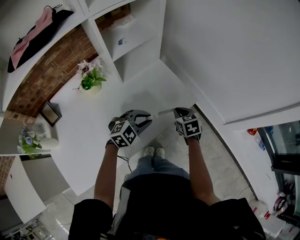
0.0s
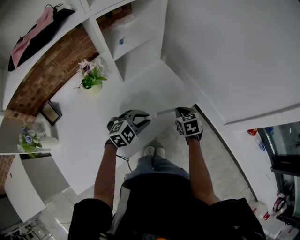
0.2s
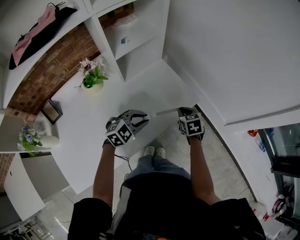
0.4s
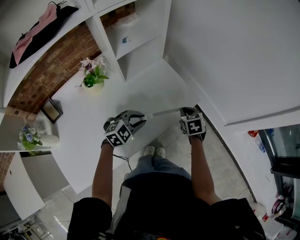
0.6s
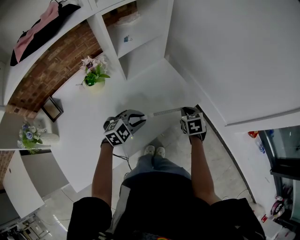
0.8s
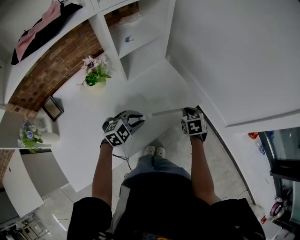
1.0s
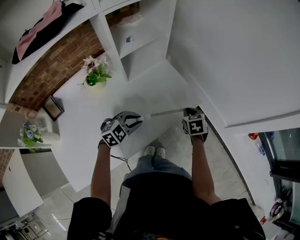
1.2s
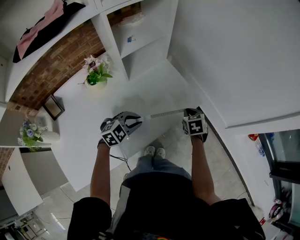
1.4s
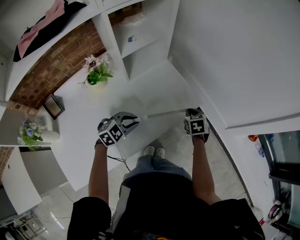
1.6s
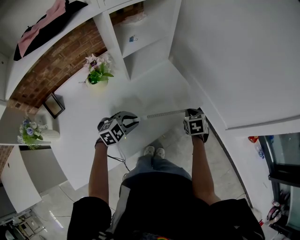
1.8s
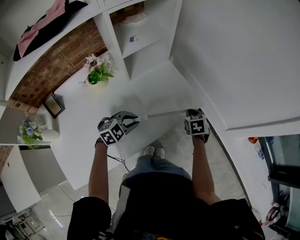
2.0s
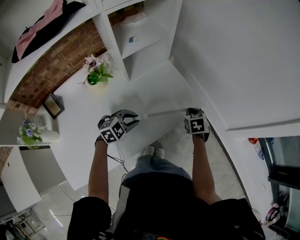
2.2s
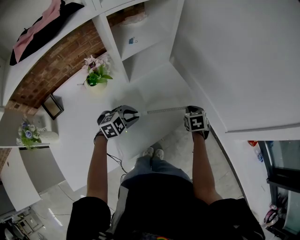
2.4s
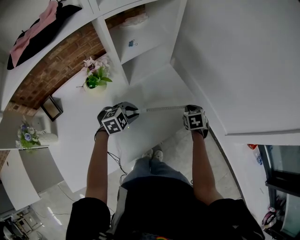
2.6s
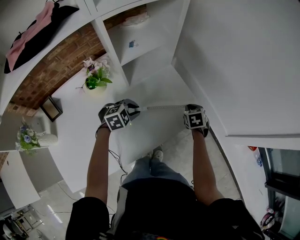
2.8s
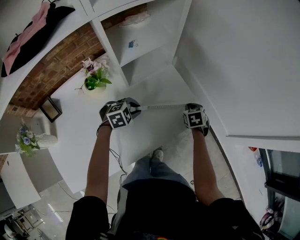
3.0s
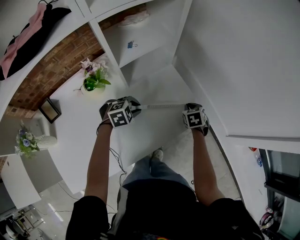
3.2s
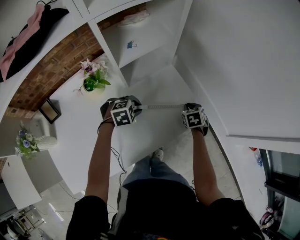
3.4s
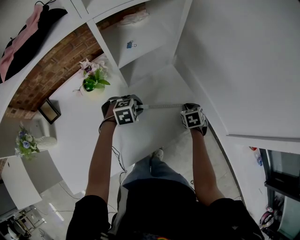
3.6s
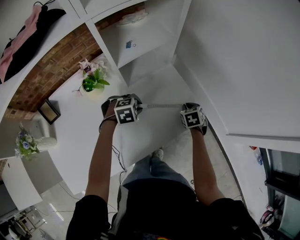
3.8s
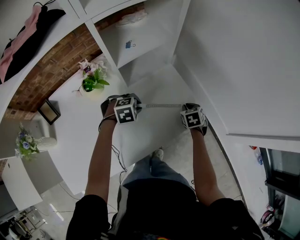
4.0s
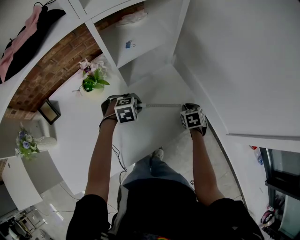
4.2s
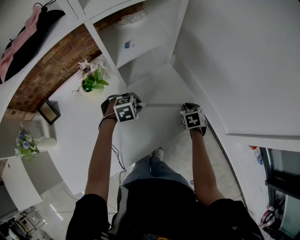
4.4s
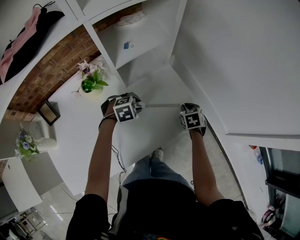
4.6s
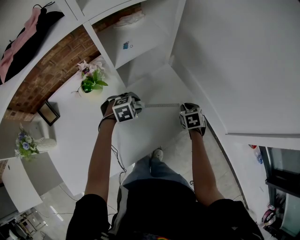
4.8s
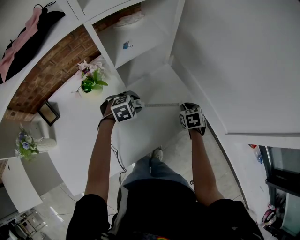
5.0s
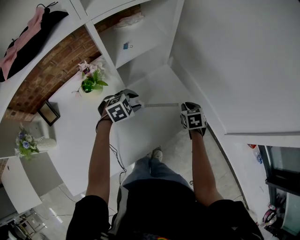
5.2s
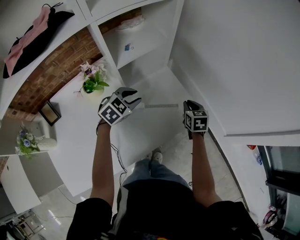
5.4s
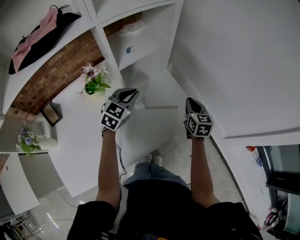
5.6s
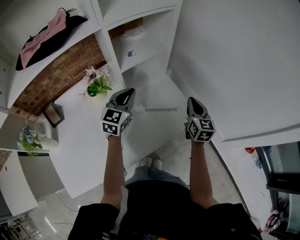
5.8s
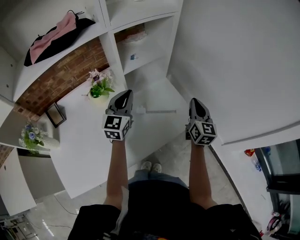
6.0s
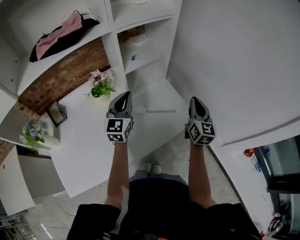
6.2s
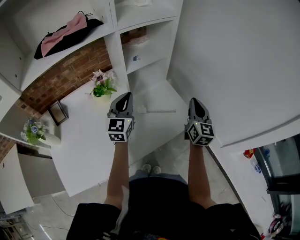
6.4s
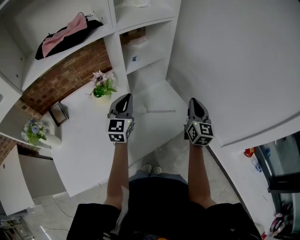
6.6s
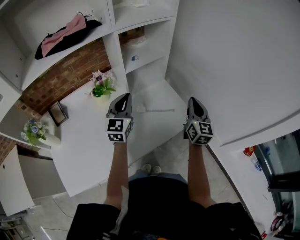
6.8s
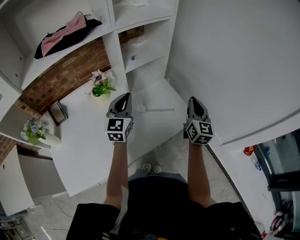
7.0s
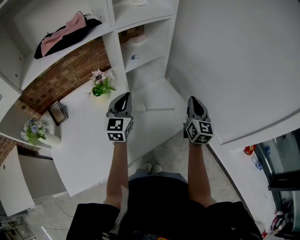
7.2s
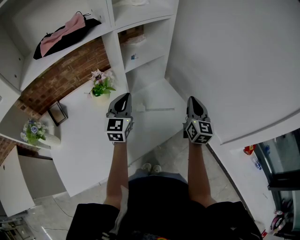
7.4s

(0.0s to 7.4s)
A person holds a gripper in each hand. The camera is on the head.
0.0s - 1.4s: The left gripper travels to the left by about 5 cm.
1.4s - 3.0s: The left gripper shifts about 10 cm forward and to the left; the right gripper shifts some 10 cm forward.
3.0s - 4.4s: There are only small adjustments of the grippers.
4.4s - 6.0s: Both grippers move upward, about 25 cm. The right gripper points its fingers about 50 degrees further upward; the left gripper angles its fingers upward, by approximately 60 degrees.
6.0s - 7.4s: The grippers make only small movements.

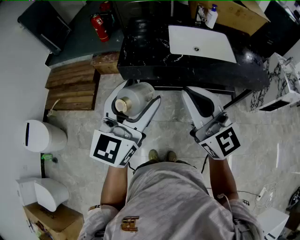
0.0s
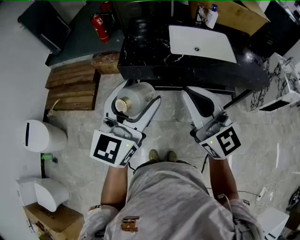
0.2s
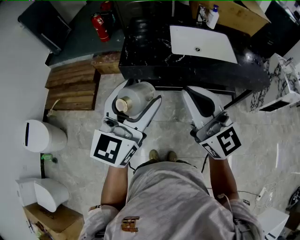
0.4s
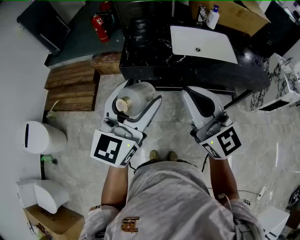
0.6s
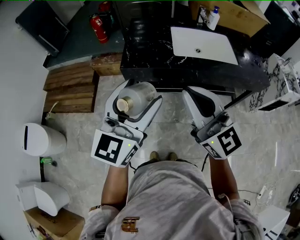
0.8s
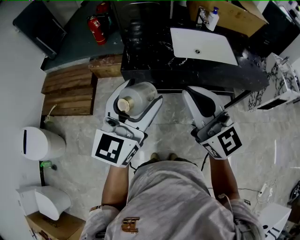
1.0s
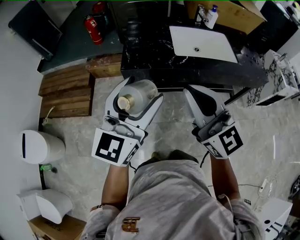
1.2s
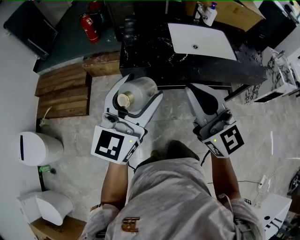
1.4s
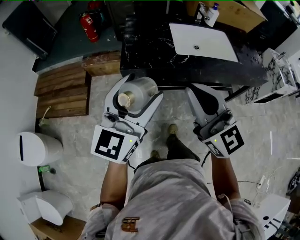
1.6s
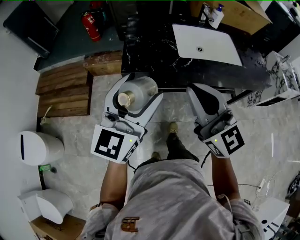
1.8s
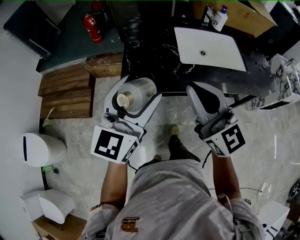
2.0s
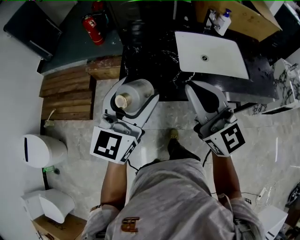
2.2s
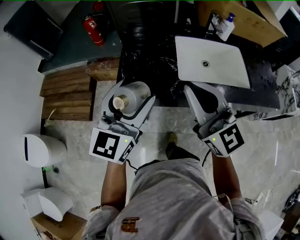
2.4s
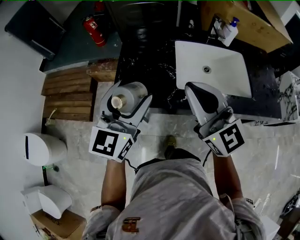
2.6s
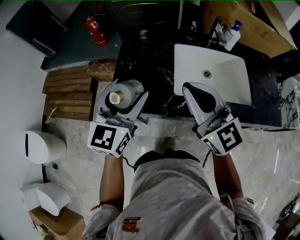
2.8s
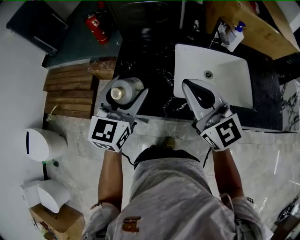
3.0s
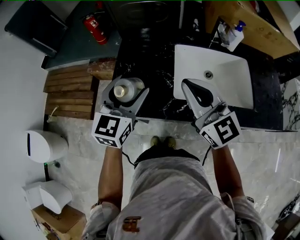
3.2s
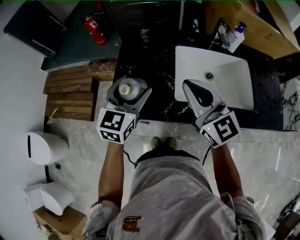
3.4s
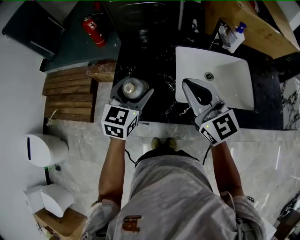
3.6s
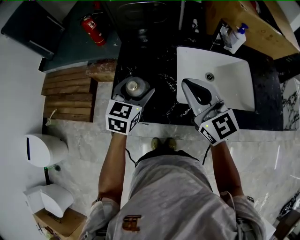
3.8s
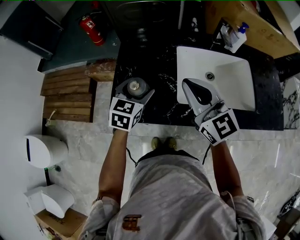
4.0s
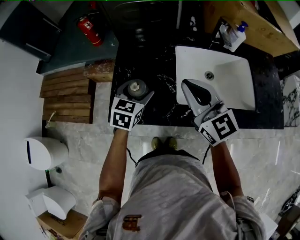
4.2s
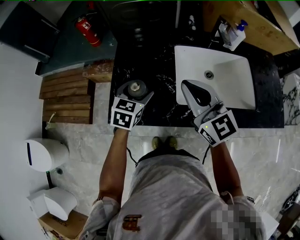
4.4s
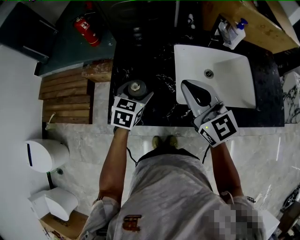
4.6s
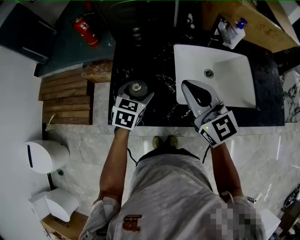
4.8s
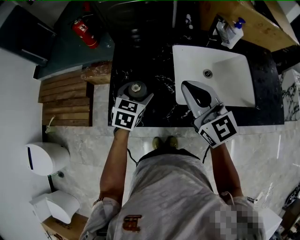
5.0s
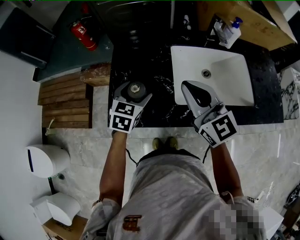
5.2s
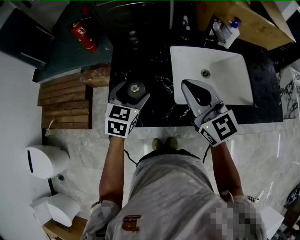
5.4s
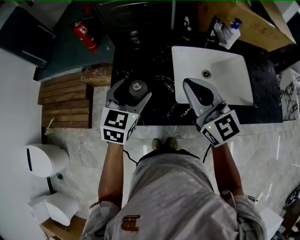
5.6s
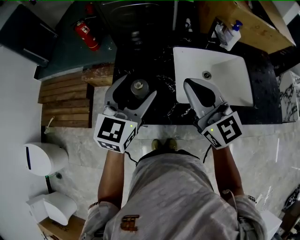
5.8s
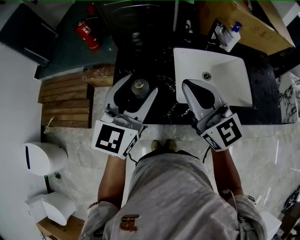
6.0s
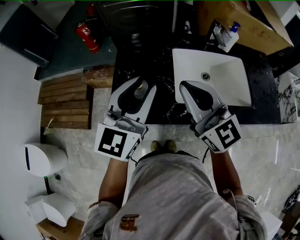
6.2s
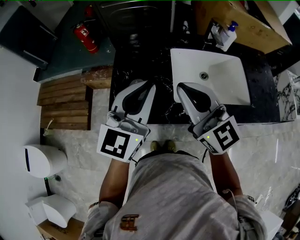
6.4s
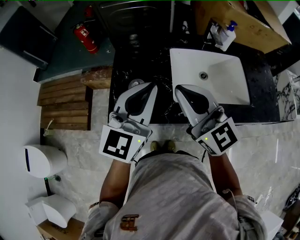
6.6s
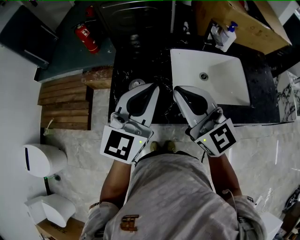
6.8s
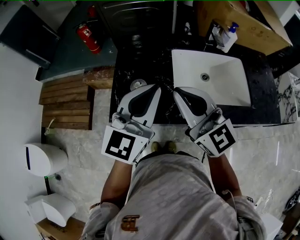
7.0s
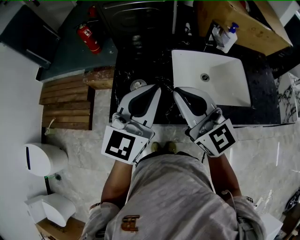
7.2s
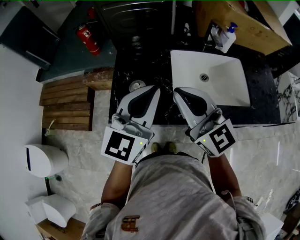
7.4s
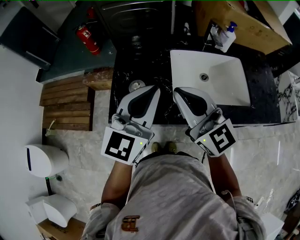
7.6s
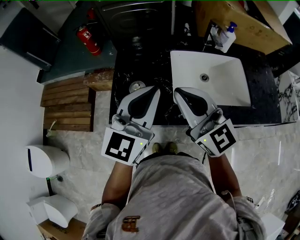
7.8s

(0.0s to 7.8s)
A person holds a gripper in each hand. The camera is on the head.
0.0s - 1.6s: The right gripper is displaced to the left by approximately 5 cm. Meanwhile the left gripper moves to the left and forward, approximately 10 cm.
1.6s - 3.2s: Both grippers move forward, roughly 30 cm. The left gripper changes its angle by roughly 20 degrees.
3.2s - 4.6s: The right gripper shifts by approximately 5 cm. Meanwhile the left gripper moves downward and forward, some 15 cm, and turns by some 30 degrees.
4.6s - 6.2s: The left gripper shifts about 25 cm upward, angles its fingers upward, by roughly 40 degrees, and closes. The right gripper moves upward, about 5 cm.
6.2s - 7.8s: The left gripper closes its fingers.

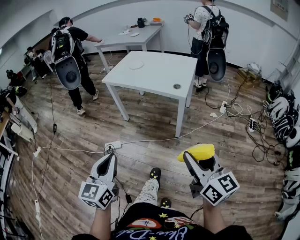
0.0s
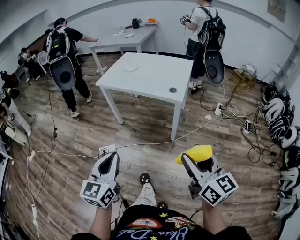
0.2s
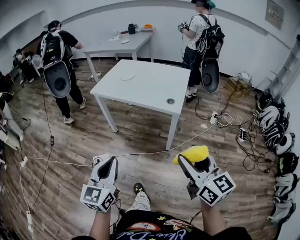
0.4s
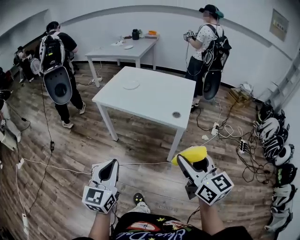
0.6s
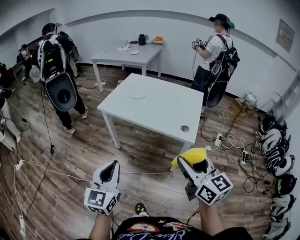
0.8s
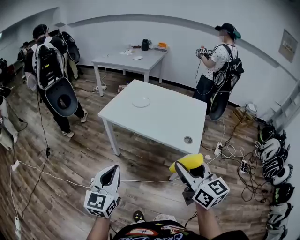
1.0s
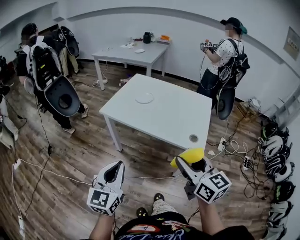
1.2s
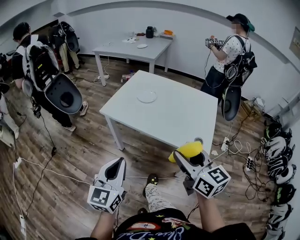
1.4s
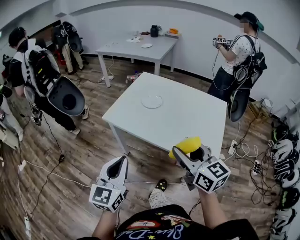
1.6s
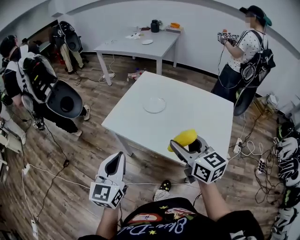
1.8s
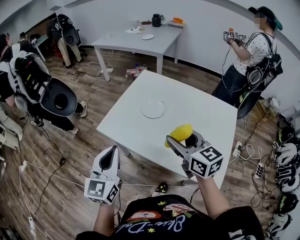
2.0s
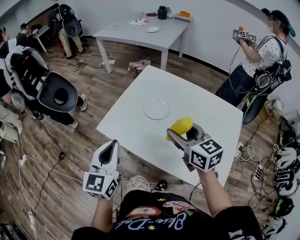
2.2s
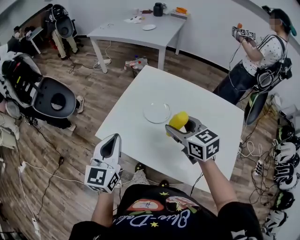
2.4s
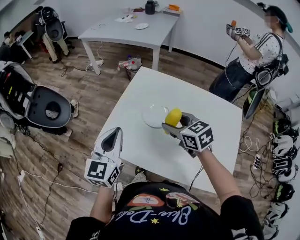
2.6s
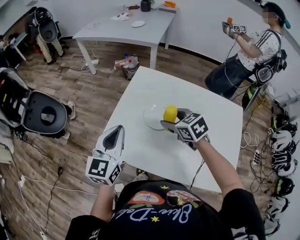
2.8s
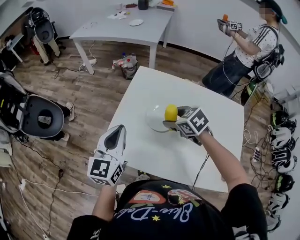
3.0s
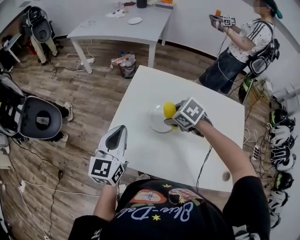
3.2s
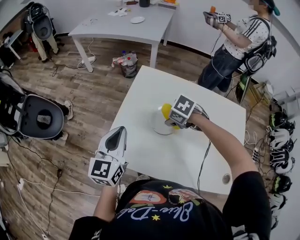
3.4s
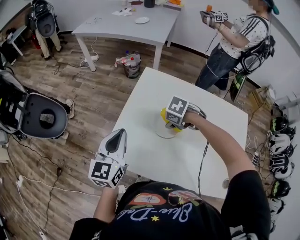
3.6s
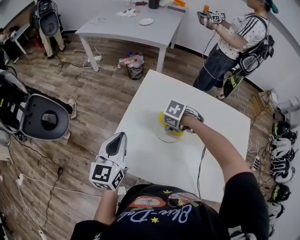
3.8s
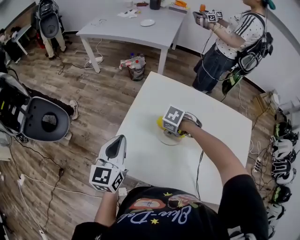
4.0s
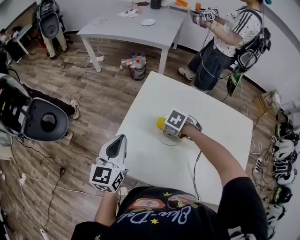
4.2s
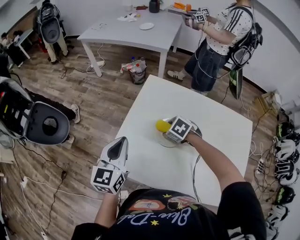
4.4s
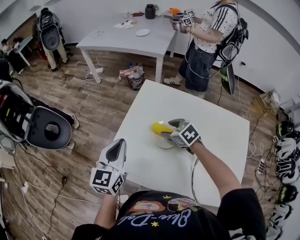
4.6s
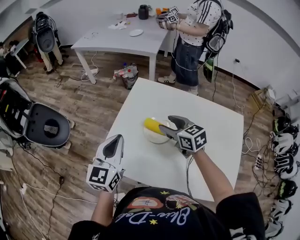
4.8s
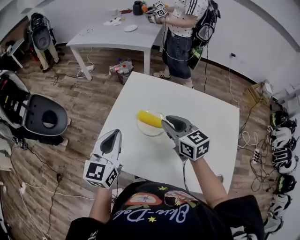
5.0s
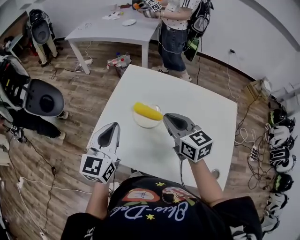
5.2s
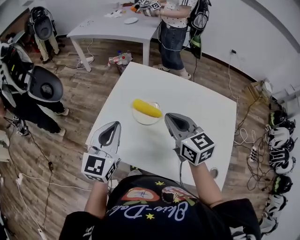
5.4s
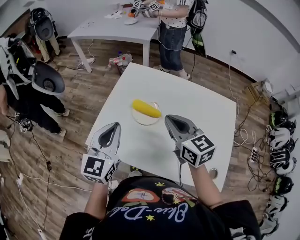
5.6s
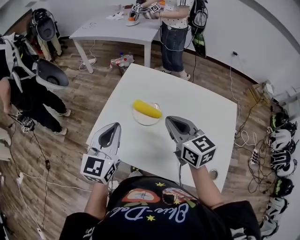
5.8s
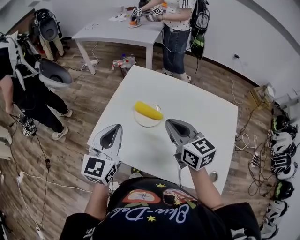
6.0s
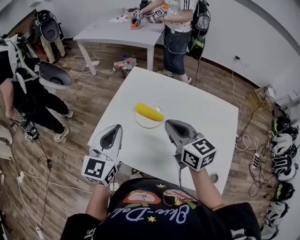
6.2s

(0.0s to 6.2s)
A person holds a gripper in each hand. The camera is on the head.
0.0s - 1.6s: The pair of grippers is taken forward, some 50 cm.
1.6s - 3.2s: The pair of grippers is taken forward, about 40 cm. The right gripper tips its fingers downward by some 60 degrees.
4.6s - 6.2s: The right gripper is displaced upward and backward by some 20 cm, angles its fingers upward, by roughly 40 degrees, and closes up. Meanwhile the left gripper goes approximately 10 cm backward and to the right.

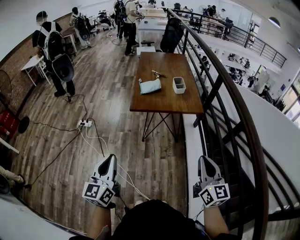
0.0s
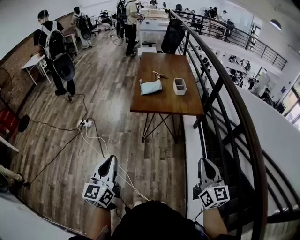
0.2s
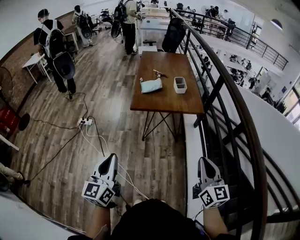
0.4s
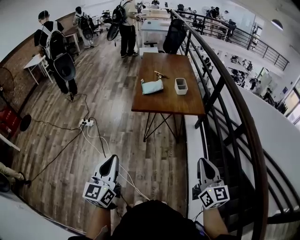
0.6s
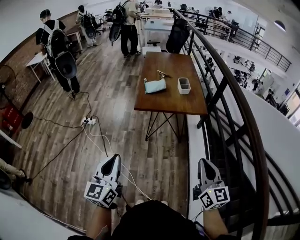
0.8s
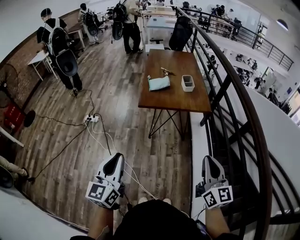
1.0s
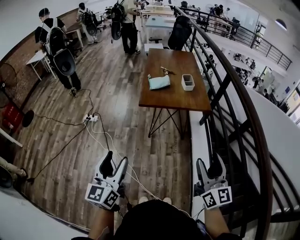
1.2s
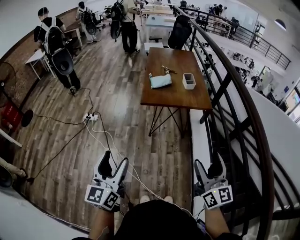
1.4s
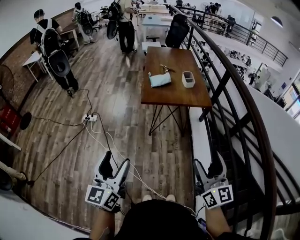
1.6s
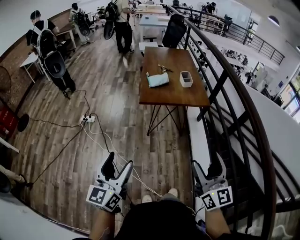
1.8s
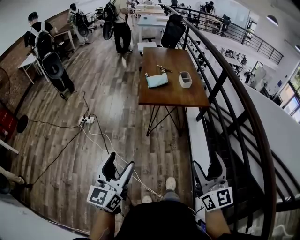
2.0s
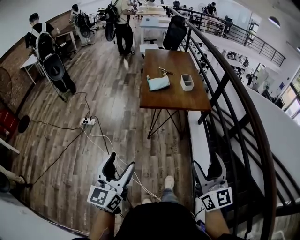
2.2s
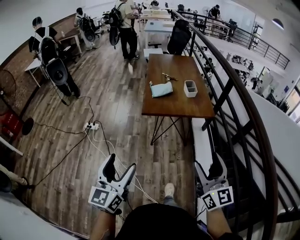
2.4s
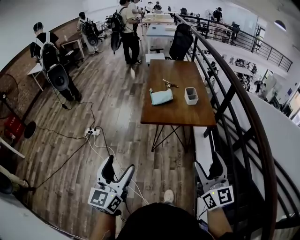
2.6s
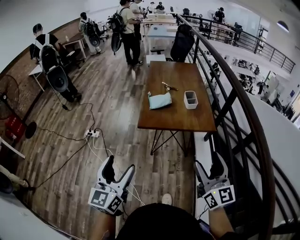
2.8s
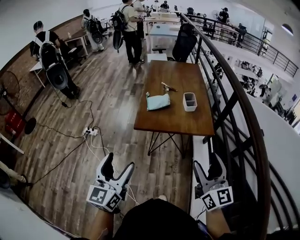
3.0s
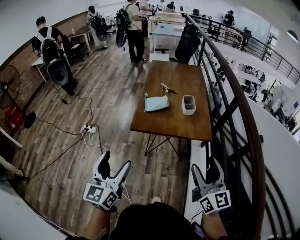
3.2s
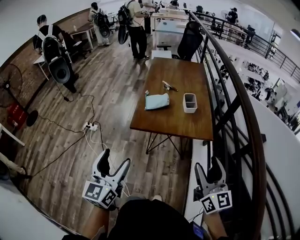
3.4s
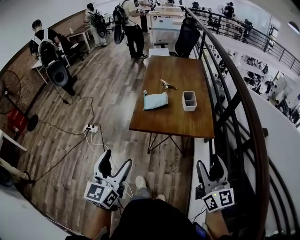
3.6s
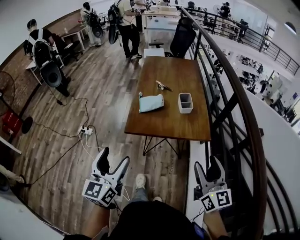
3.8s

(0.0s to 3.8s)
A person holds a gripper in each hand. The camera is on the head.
0.0s - 1.2s: The left gripper opens. The right gripper moves some 5 cm, and opens up.
1.2s - 2.6s: Both grippers move forward, approximately 10 cm.
2.6s - 3.8s: Both grippers move forward and to the right, some 20 cm.
